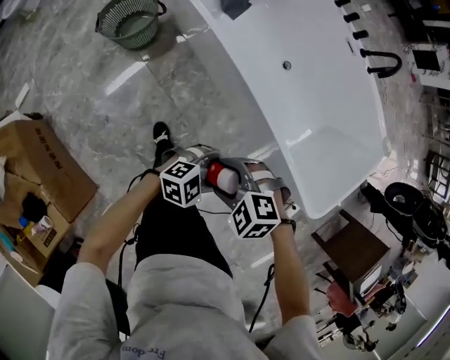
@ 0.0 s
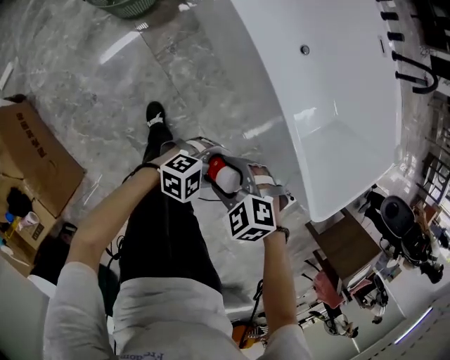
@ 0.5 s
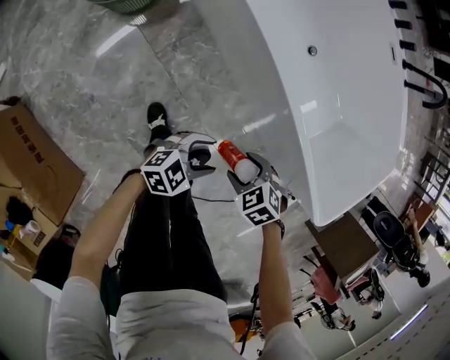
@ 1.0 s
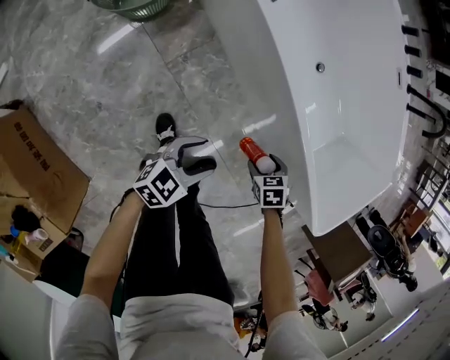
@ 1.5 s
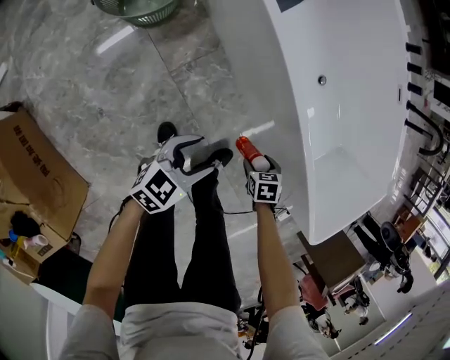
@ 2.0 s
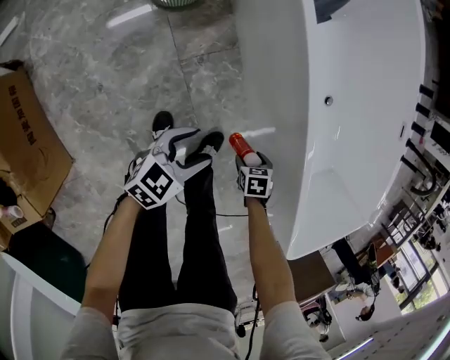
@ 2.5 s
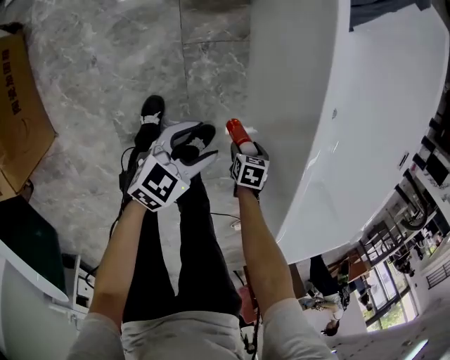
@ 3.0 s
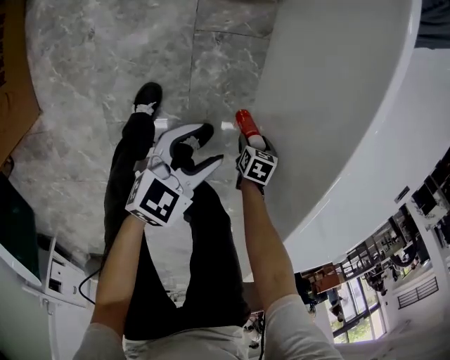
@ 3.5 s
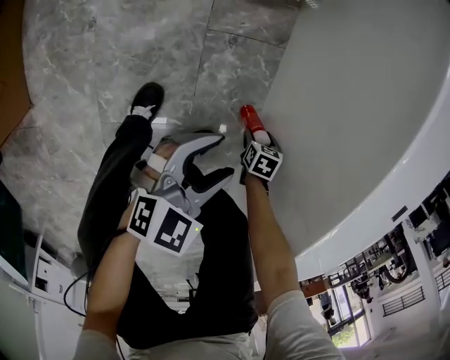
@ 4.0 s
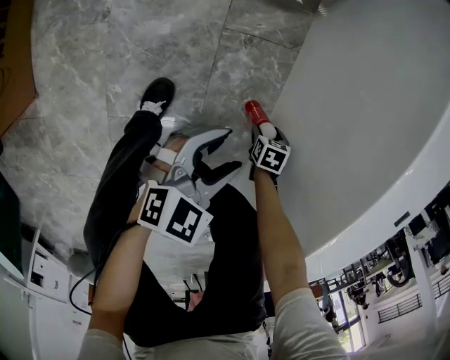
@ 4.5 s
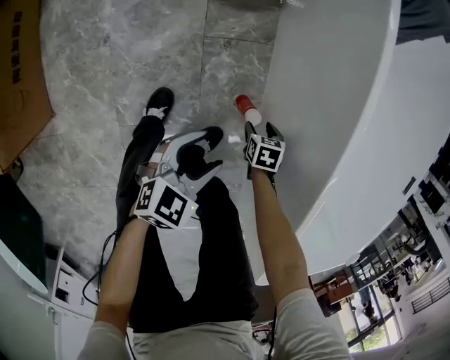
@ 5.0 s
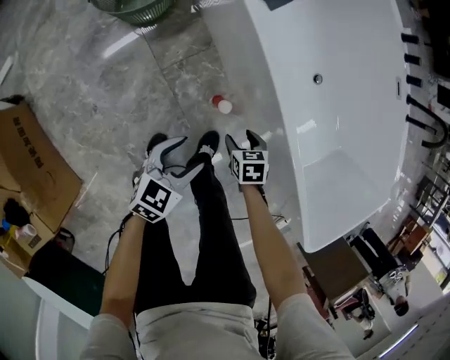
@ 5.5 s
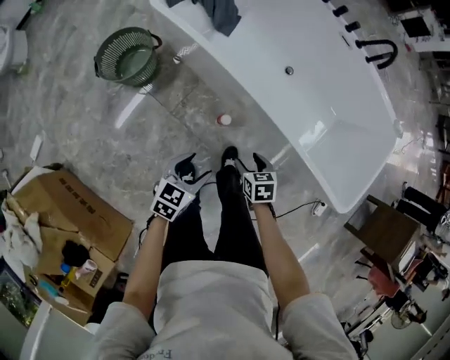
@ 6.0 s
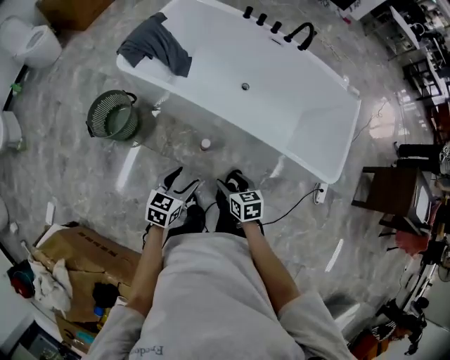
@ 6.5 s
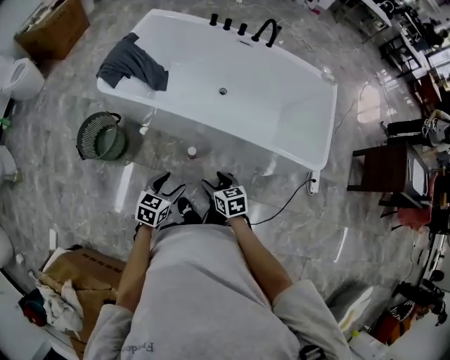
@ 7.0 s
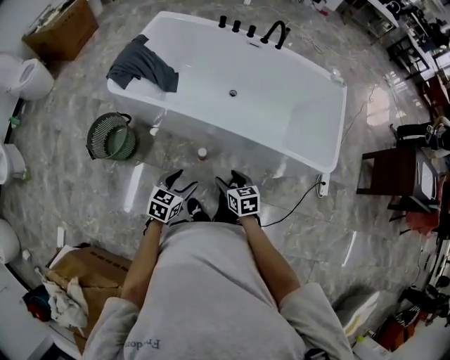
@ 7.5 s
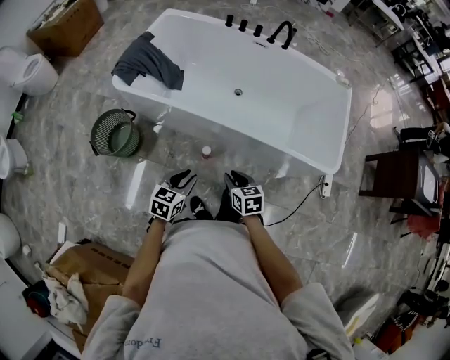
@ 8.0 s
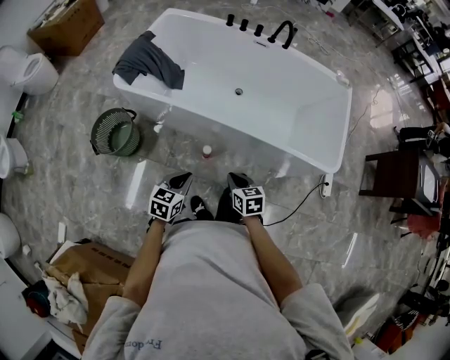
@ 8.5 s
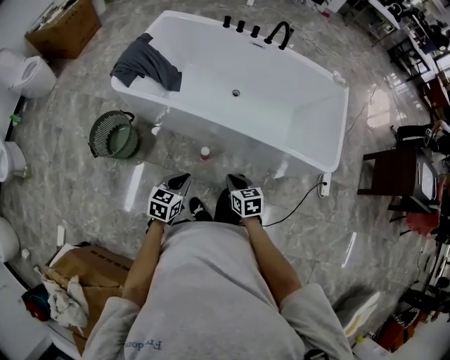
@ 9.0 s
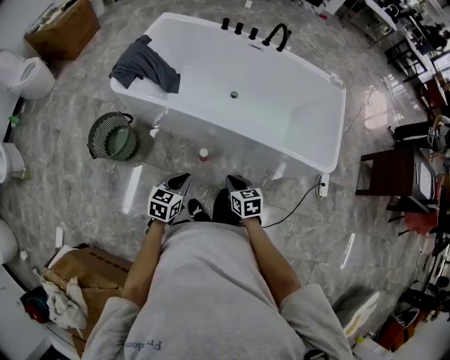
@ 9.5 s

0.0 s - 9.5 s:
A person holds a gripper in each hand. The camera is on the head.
0.0 s - 2.0 s: The left gripper shifts by about 35 cm, and rolls counterclockwise, seen from behind, by some 40 degrees; the right gripper is displaced downward by about 35 cm, and rolls clockwise, seen from behind, by roughly 60 degrees.
2.0 s - 4.0 s: The right gripper travels downward by roughly 25 cm; the left gripper is displaced downward by some 15 cm, and swivels approximately 30 degrees.
4.0 s - 5.5 s: The right gripper shifts approximately 25 cm upward; the left gripper goes some 15 cm upward.
5.5 s - 7.5 s: The grippers both shift upward by some 30 cm. The left gripper changes its angle by roughly 30 degrees. The right gripper rotates about 50 degrees.
7.5 s - 9.5 s: The right gripper closes up; the left gripper closes up.

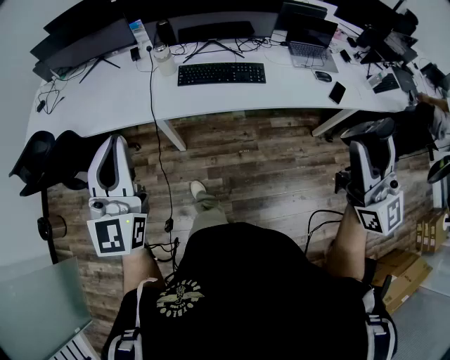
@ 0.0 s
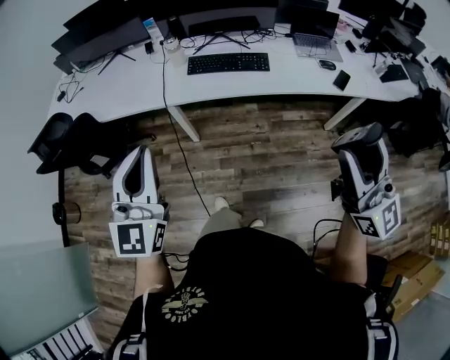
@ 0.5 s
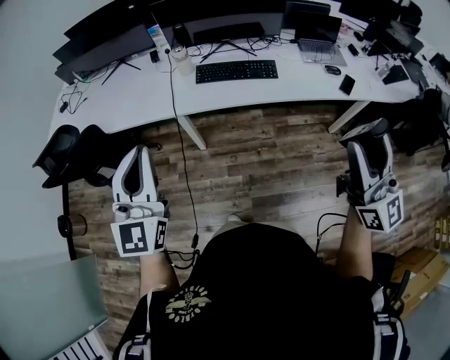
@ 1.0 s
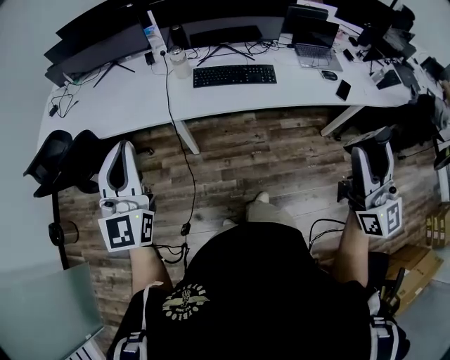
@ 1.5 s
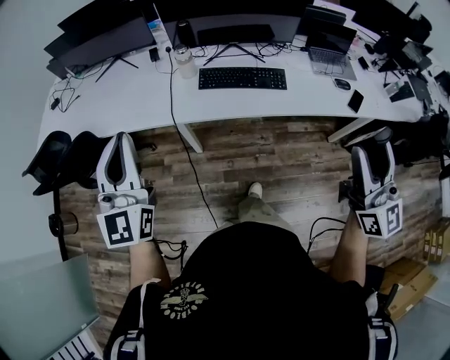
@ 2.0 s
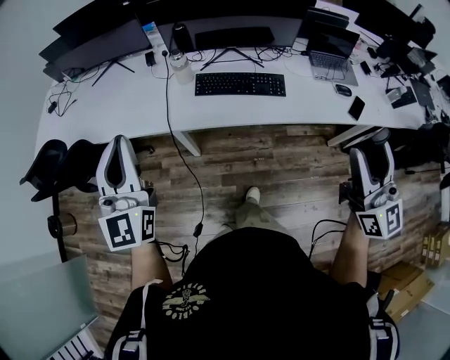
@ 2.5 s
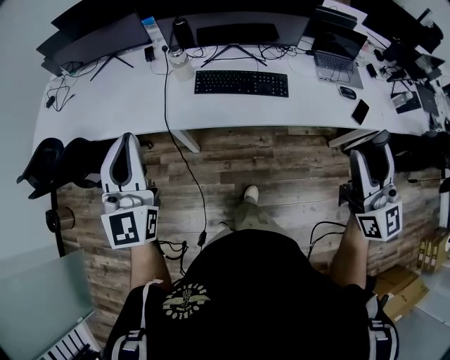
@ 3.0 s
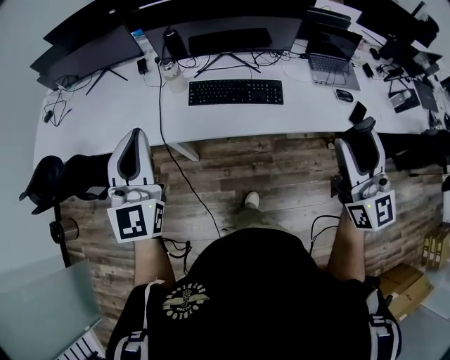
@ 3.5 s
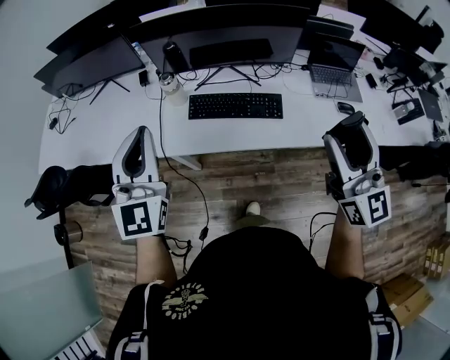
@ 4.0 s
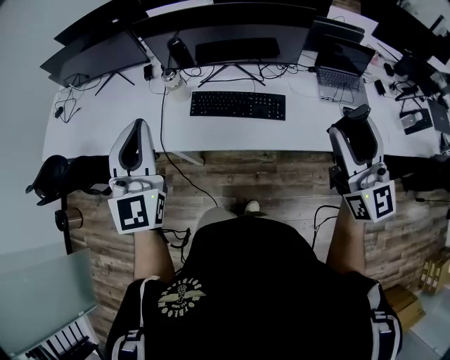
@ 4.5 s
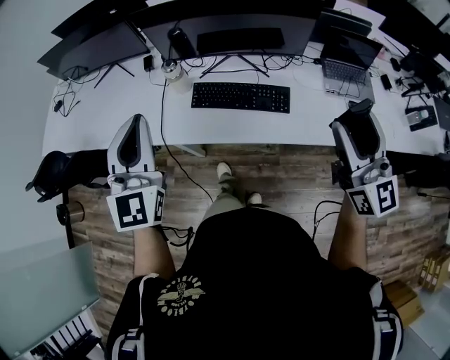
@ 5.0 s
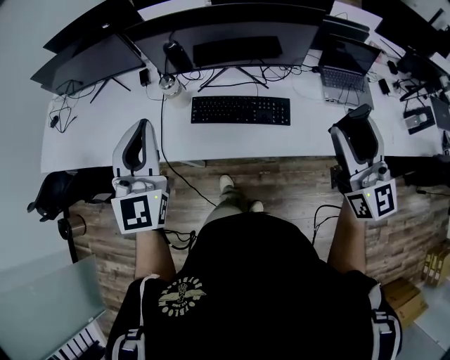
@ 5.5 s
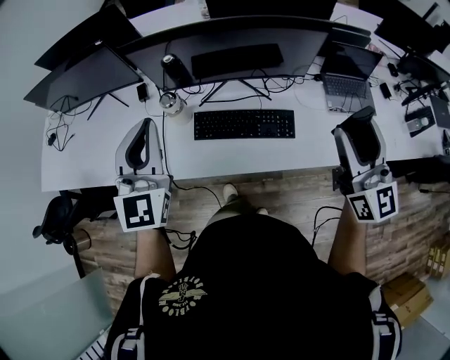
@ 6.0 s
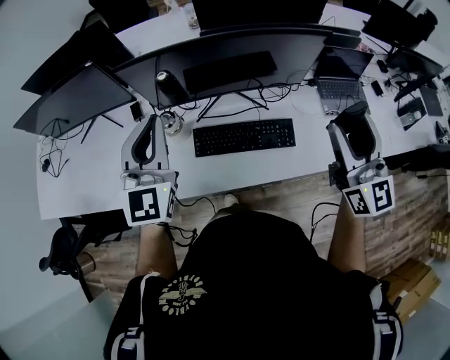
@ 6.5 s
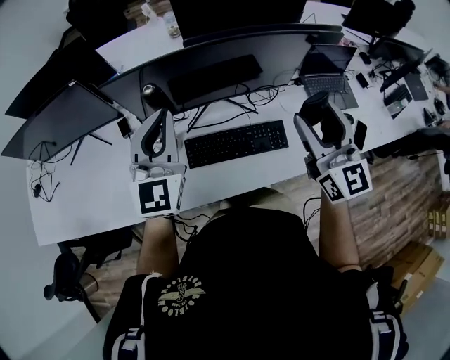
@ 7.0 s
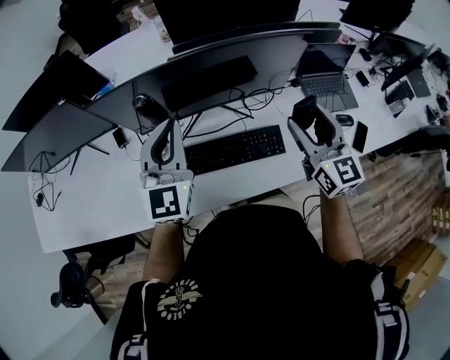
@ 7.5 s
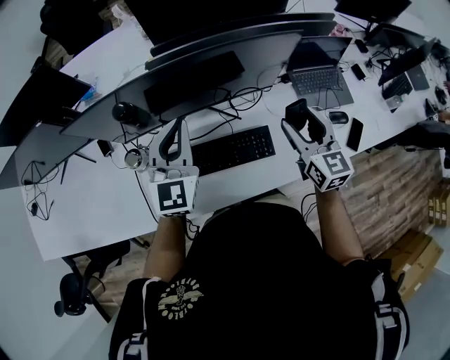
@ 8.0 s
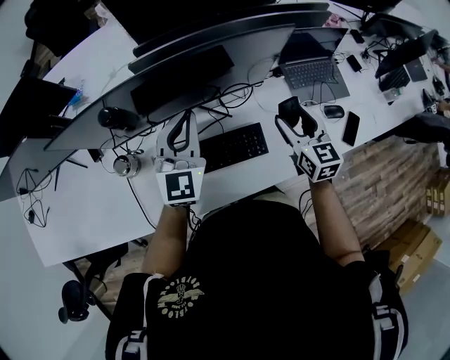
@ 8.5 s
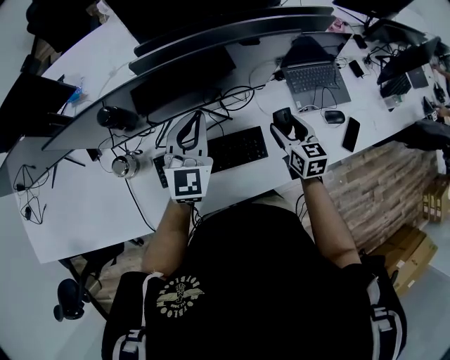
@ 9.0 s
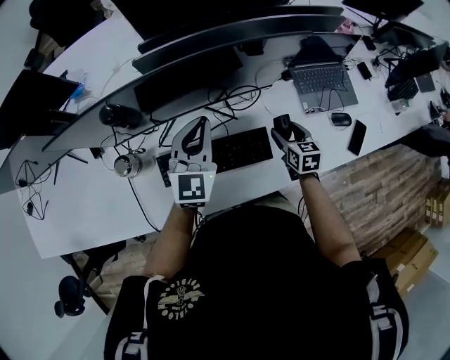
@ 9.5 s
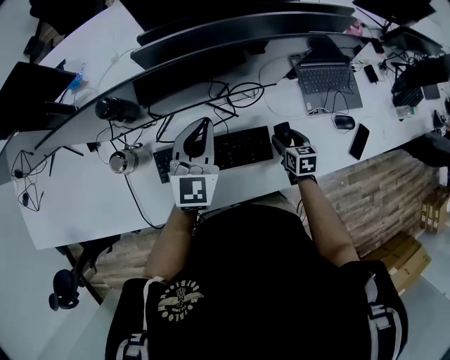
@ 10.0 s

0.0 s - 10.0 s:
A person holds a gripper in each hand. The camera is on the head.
0.0 s - 2.0 s: The right gripper travels backward and back again, approximately 10 cm each way; the left gripper is displaced to the left by approximately 5 cm, and reaches some 10 cm backward, then returns.
2.0 s - 4.0 s: The left gripper goes about 20 cm forward and to the right. The right gripper travels forward by some 20 cm.
4.0 s - 6.0 s: The two grippers go roughly 15 cm forward.
6.0 s - 8.0 s: The right gripper moves downward and forward, about 25 cm, and changes its angle by some 30 degrees; the left gripper moves forward, to the right and downward, roughly 25 cm.
8.0 s - 10.0 s: The left gripper is displaced downward and to the right by some 15 cm, while the right gripper is displaced downward by some 30 cm, and tips its fingers downward by roughly 40 degrees.

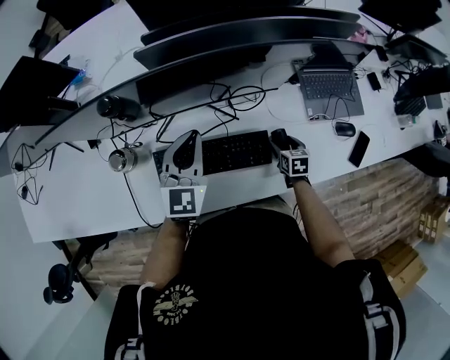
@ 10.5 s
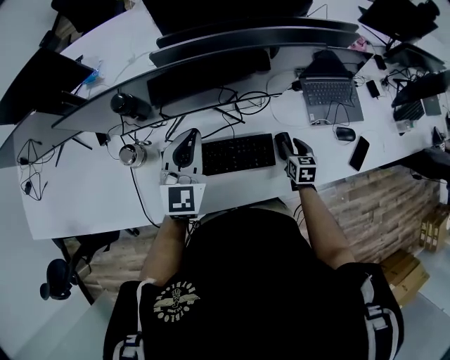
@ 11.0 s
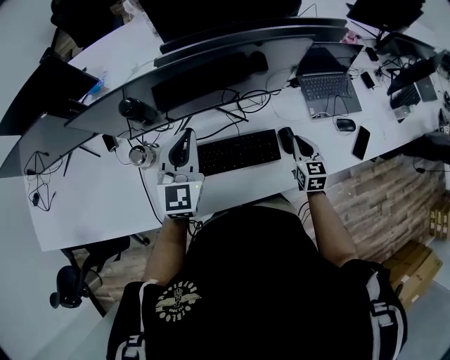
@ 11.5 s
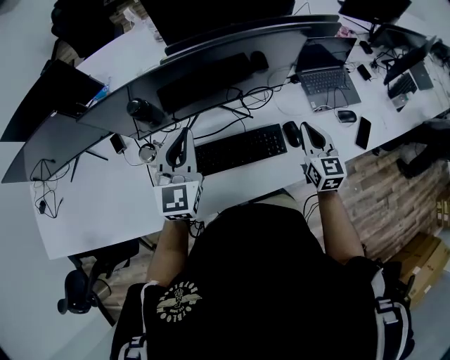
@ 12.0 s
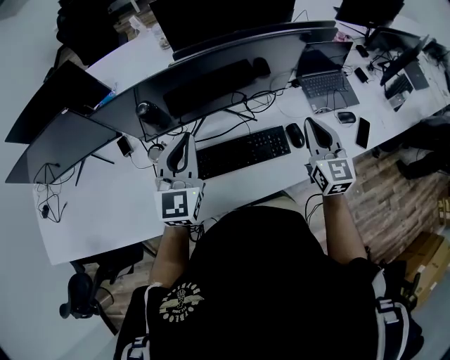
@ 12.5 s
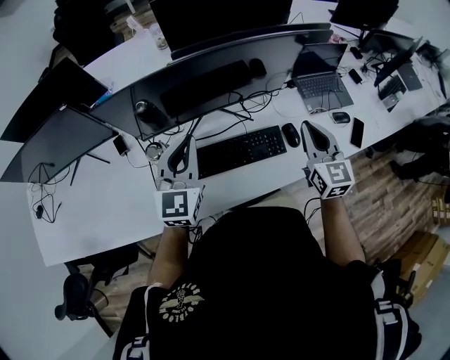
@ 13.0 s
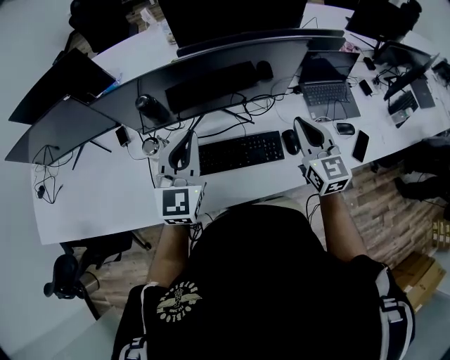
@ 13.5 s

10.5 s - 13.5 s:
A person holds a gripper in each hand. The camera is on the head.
10.5 s - 12.0 s: The right gripper moves upward, some 25 cm, points its fingers some 40 degrees further upward, and closes. The left gripper heads upward, to the left and backward, covering roughly 15 cm.
12.0 s - 13.5 s: The left gripper shifts by approximately 5 cm, while the right gripper is displaced upward by roughly 10 cm.

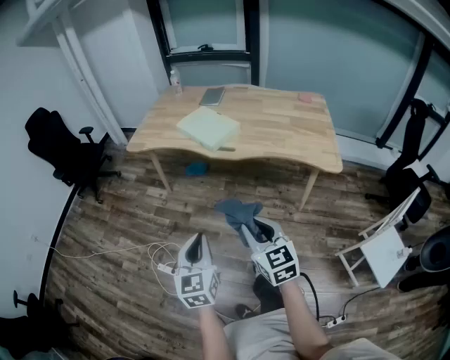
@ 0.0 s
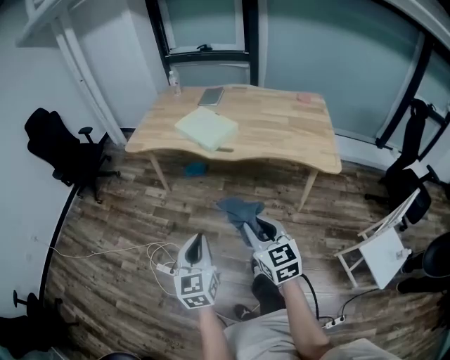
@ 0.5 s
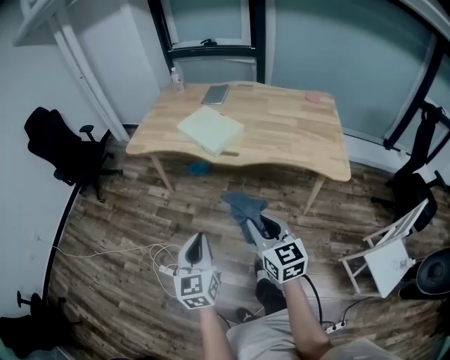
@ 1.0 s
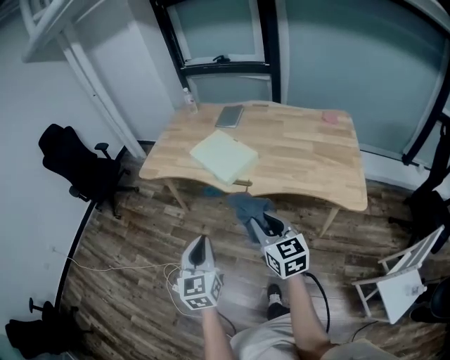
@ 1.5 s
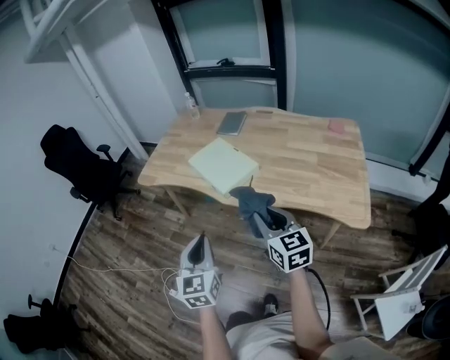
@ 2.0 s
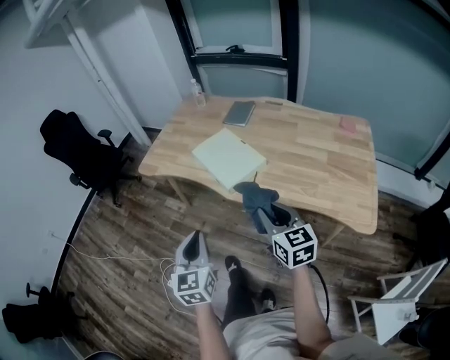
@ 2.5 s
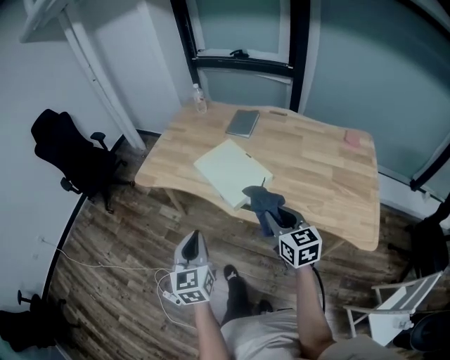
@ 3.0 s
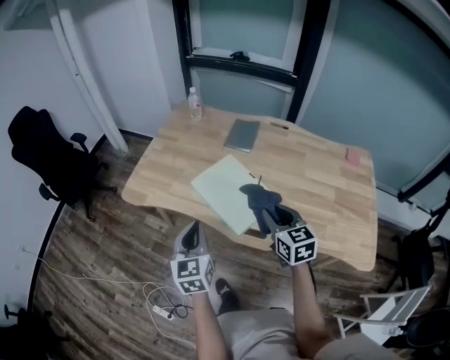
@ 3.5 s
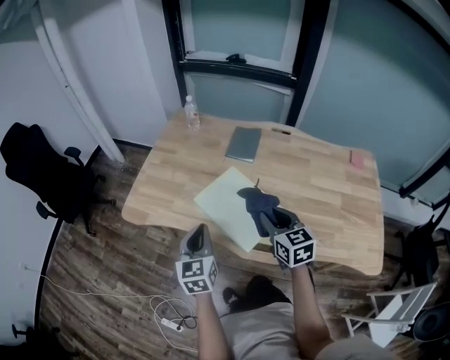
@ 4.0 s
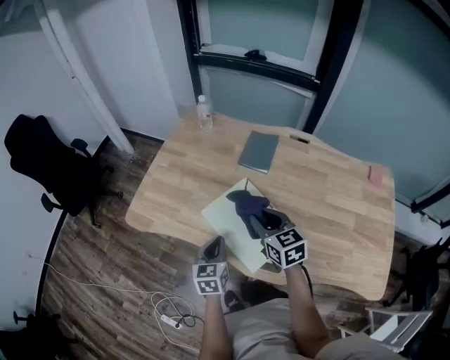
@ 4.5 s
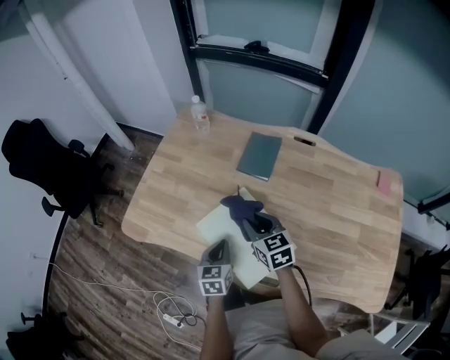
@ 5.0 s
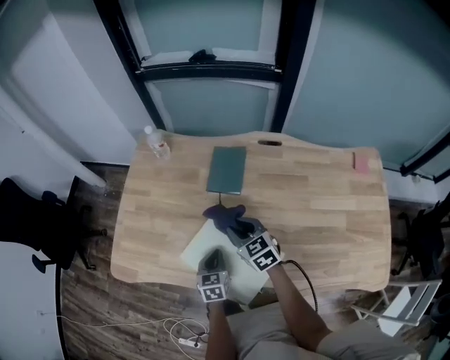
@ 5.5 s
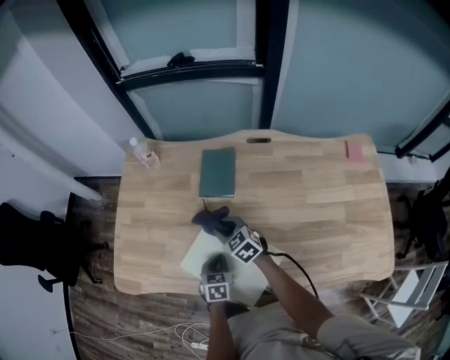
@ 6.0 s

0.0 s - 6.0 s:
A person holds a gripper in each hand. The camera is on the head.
0.0 s - 2.0 s: The left gripper goes approximately 25 cm forward, while the right gripper travels forward and to the right by approximately 30 cm.
2.0 s - 4.0 s: The grippers both shift forward by approximately 35 cm.
4.0 s - 6.0 s: The left gripper moves downward, forward and to the right, approximately 30 cm, and points its fingers roughly 30 degrees further downward; the right gripper travels forward and downward by approximately 30 cm, and swivels roughly 20 degrees.
